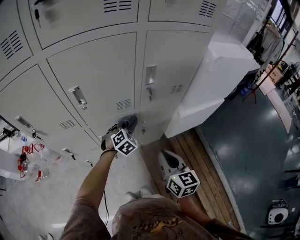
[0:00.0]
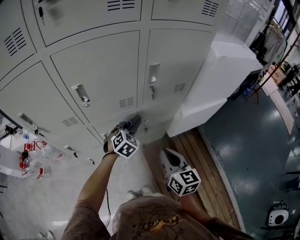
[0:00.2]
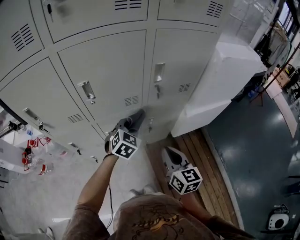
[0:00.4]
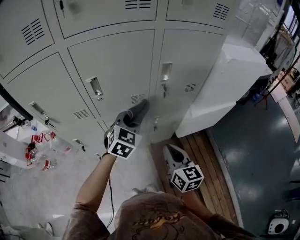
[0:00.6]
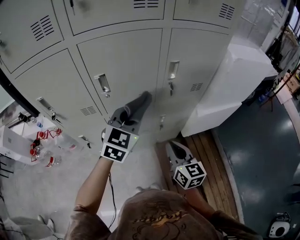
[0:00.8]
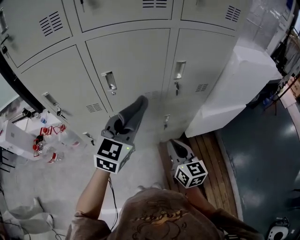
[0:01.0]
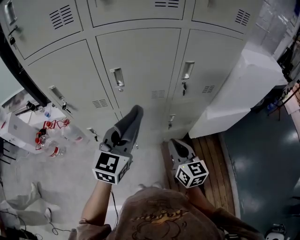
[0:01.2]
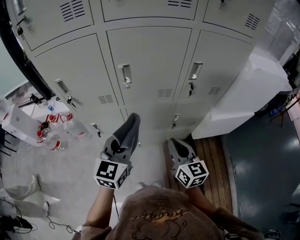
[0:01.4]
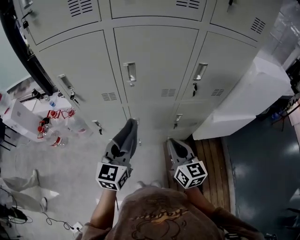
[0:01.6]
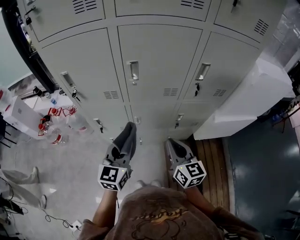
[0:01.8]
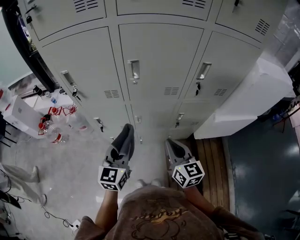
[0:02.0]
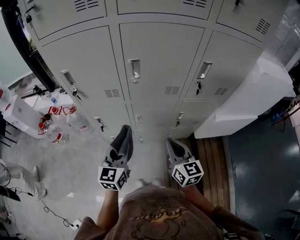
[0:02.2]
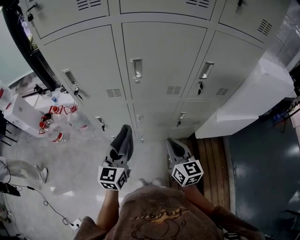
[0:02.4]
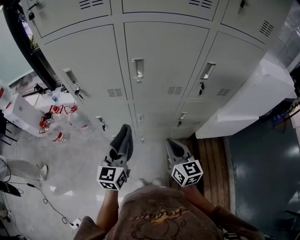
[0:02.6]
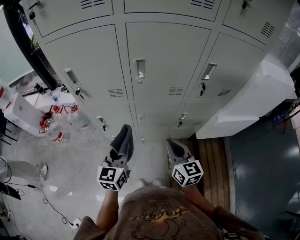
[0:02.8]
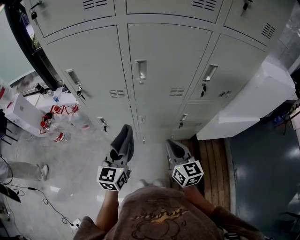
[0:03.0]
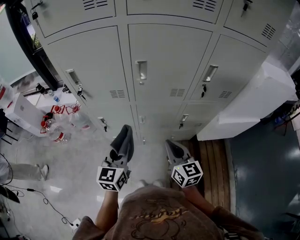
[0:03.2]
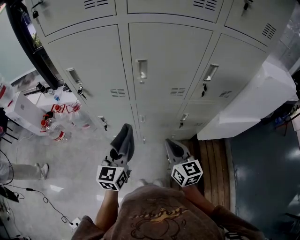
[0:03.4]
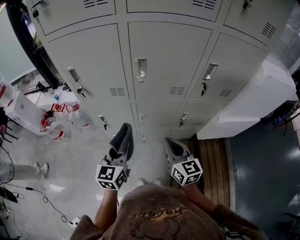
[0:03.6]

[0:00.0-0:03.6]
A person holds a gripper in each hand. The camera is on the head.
0:00.0 to 0:01.8: The left gripper shifts some 30 cm backward, to the left and upward, and points its fingers approximately 30 degrees further upward; the right gripper shifts about 10 cm to the left.
0:01.8 to 0:03.6: The grippers move only a little.

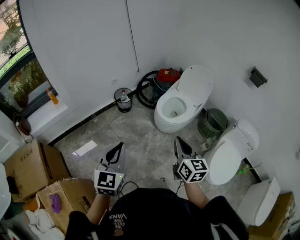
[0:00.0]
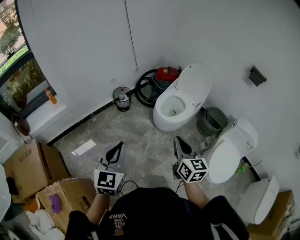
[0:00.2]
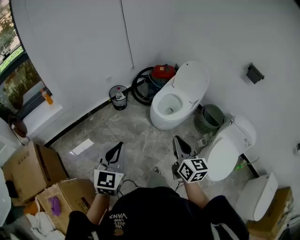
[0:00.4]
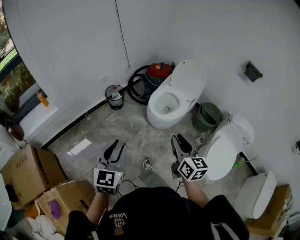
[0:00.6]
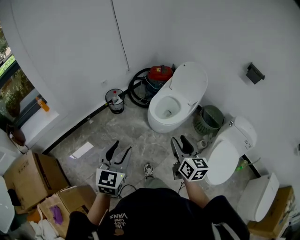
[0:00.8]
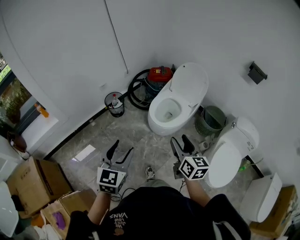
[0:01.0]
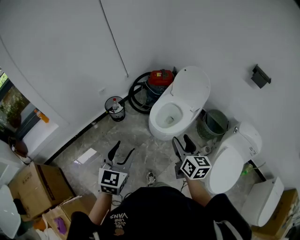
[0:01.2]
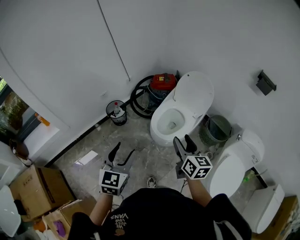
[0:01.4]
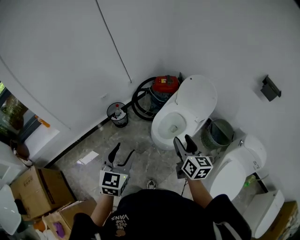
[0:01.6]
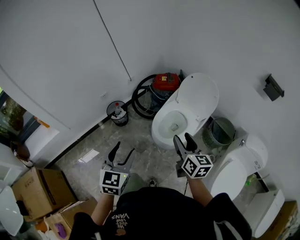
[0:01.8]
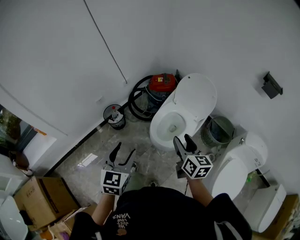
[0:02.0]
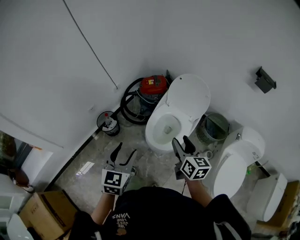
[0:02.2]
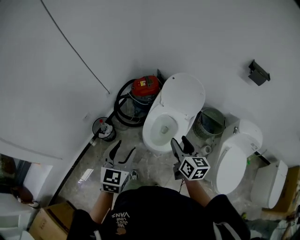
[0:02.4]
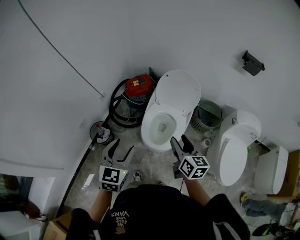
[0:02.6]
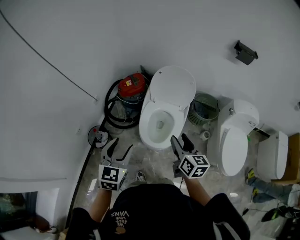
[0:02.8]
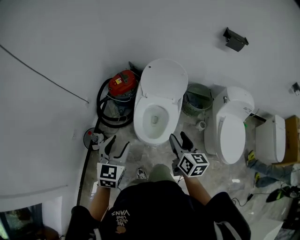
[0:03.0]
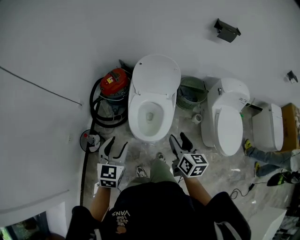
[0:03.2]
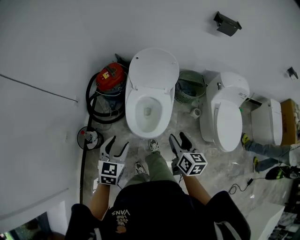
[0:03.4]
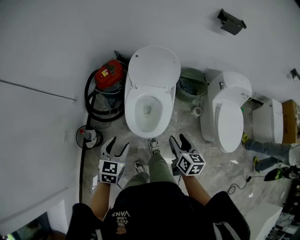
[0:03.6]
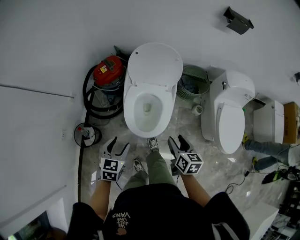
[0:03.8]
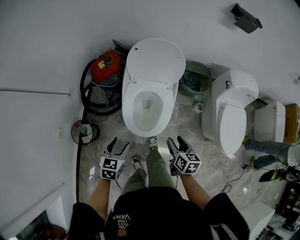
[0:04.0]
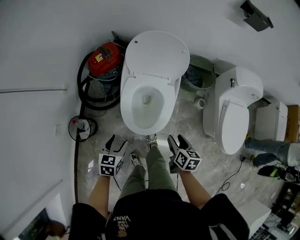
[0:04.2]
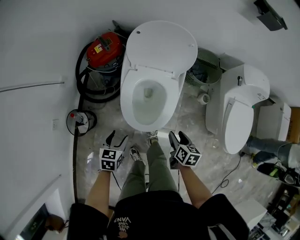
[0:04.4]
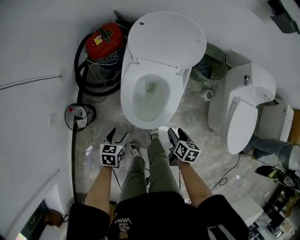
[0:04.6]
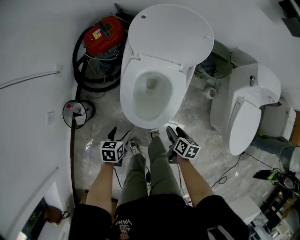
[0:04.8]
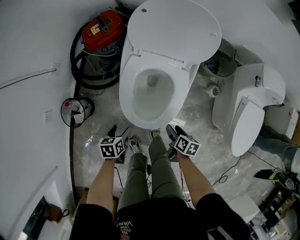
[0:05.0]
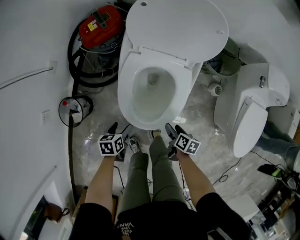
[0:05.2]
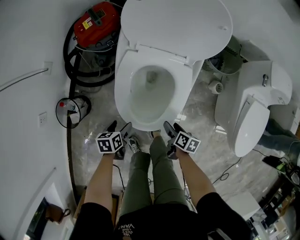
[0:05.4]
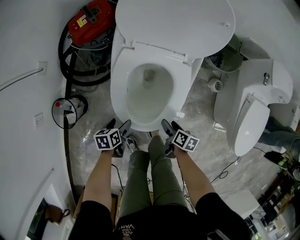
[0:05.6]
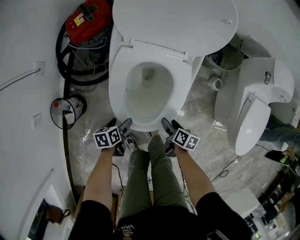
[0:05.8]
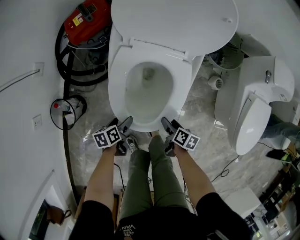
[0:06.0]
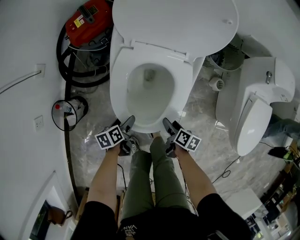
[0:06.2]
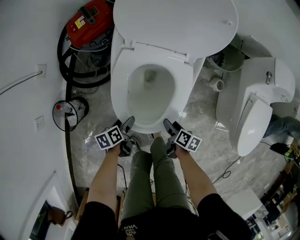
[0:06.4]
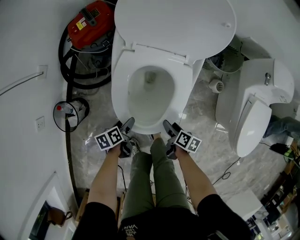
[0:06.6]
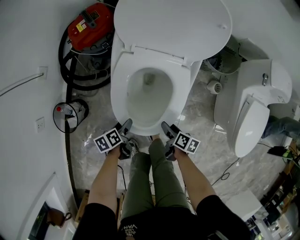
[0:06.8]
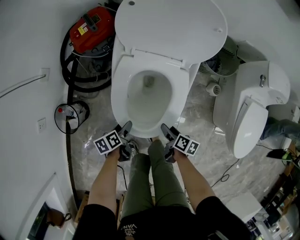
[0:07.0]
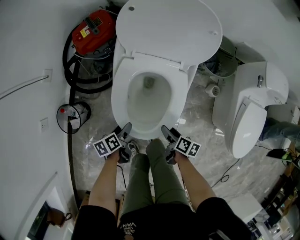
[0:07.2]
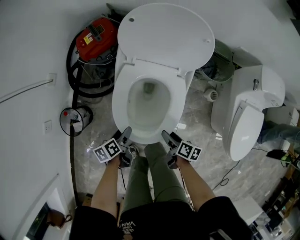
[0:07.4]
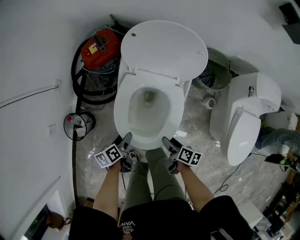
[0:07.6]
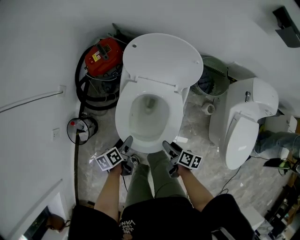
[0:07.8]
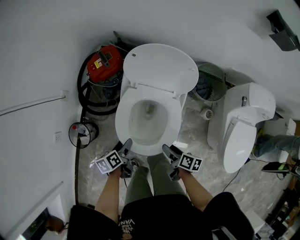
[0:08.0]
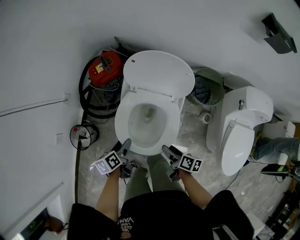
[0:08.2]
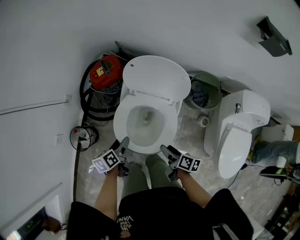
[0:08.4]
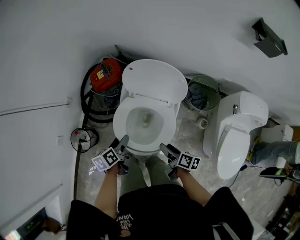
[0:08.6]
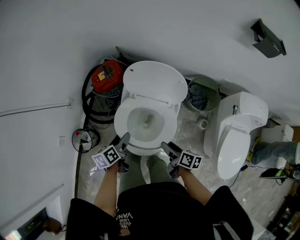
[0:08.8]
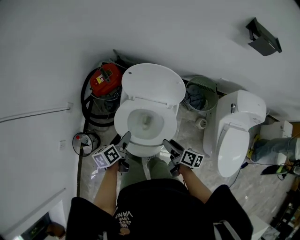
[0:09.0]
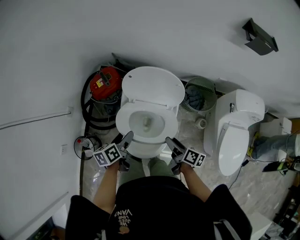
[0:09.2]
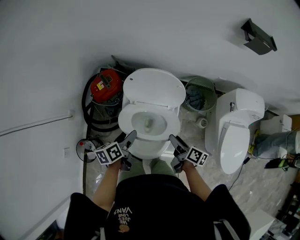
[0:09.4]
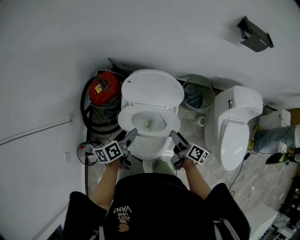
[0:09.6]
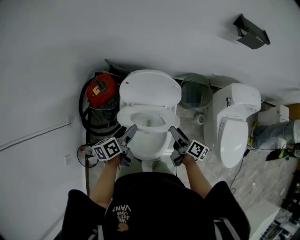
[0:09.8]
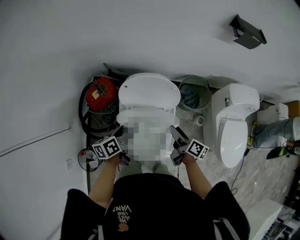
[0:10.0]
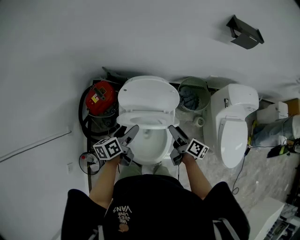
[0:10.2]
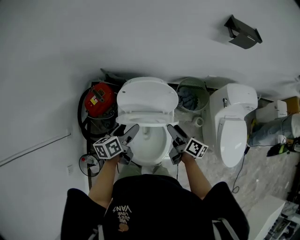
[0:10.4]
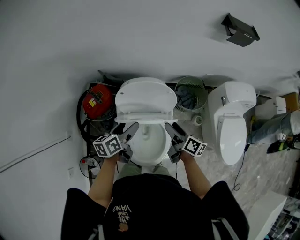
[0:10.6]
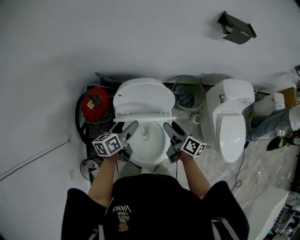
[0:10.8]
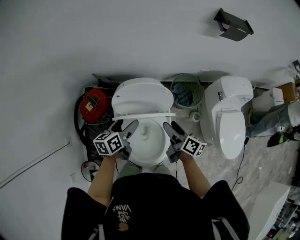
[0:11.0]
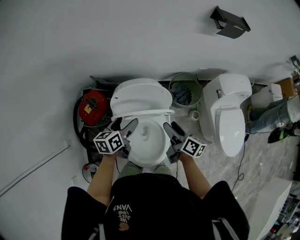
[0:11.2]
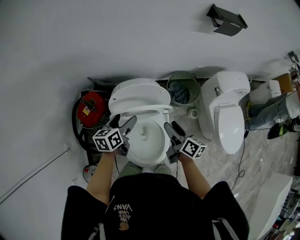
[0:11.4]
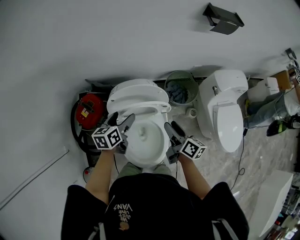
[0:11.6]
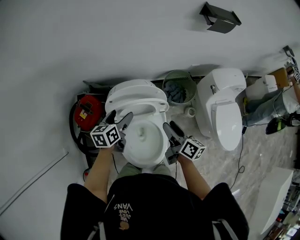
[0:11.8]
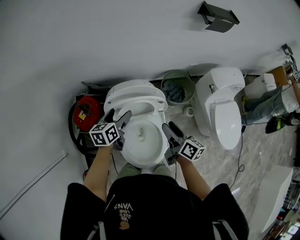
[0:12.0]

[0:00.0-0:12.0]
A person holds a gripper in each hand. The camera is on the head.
0:00.0 to 0:01.6: The two grippers go some 25 cm forward. The left gripper opens up, while the right gripper opens.
0:01.6 to 0:03.0: The right gripper ends up about 10 cm from where it was, and rotates roughly 40 degrees; the left gripper moves approximately 25 cm, and rotates approximately 30 degrees.
0:03.0 to 0:04.4: Both grippers travel together downward, approximately 30 cm. The left gripper turns by some 30 degrees; the right gripper rotates some 30 degrees.
0:04.4 to 0:06.0: Both grippers travel together downward, approximately 25 cm. The left gripper rolls counterclockwise, seen from behind, by about 40 degrees; the right gripper turns by some 20 degrees.
0:06.0 to 0:07.6: Both grippers move upward, some 15 cm.
0:07.6 to 0:09.0: Both grippers move upward and forward, some 20 cm.
0:09.0 to 0:10.4: Both grippers move forward and upward, some 15 cm. The right gripper swivels roughly 20 degrees; the left gripper changes its angle by approximately 20 degrees.
0:10.4 to 0:12.0: The left gripper goes approximately 10 cm forward, and swivels about 20 degrees.

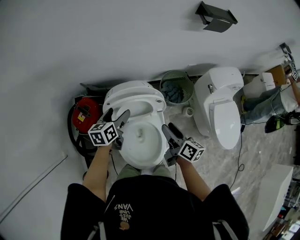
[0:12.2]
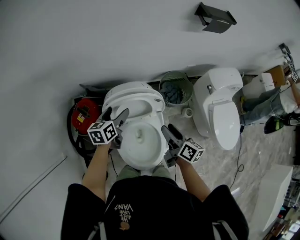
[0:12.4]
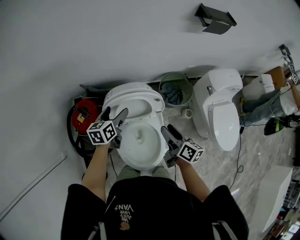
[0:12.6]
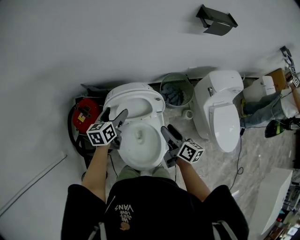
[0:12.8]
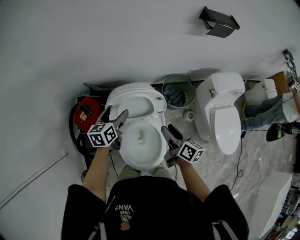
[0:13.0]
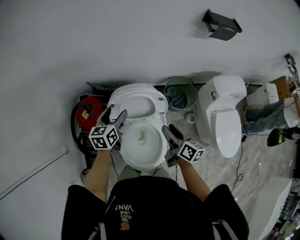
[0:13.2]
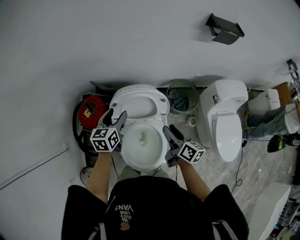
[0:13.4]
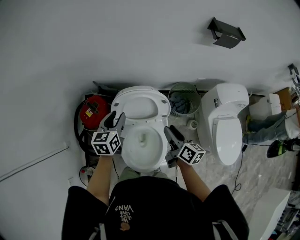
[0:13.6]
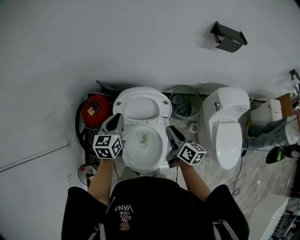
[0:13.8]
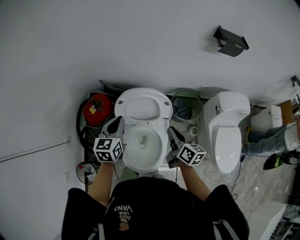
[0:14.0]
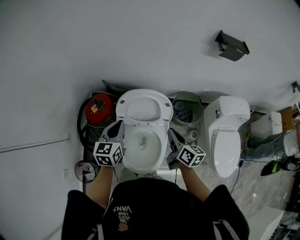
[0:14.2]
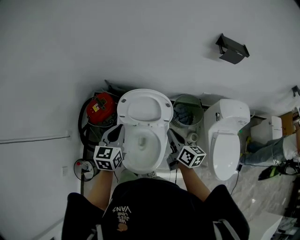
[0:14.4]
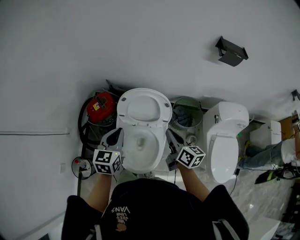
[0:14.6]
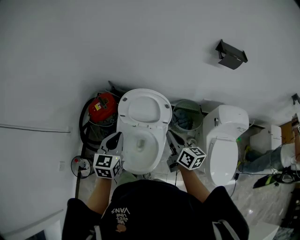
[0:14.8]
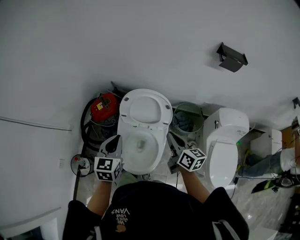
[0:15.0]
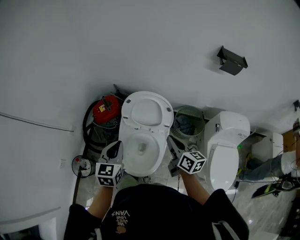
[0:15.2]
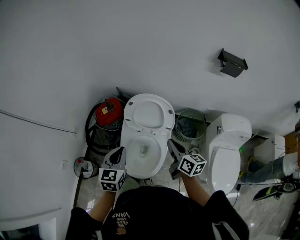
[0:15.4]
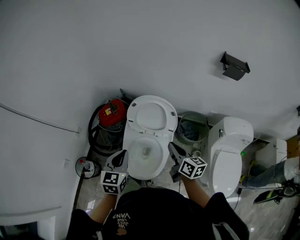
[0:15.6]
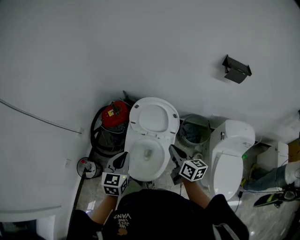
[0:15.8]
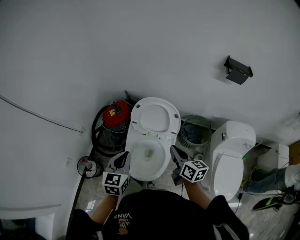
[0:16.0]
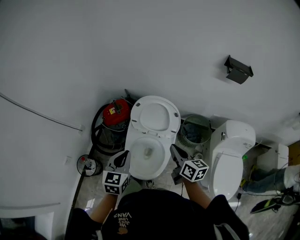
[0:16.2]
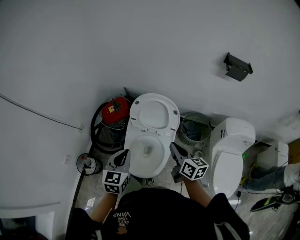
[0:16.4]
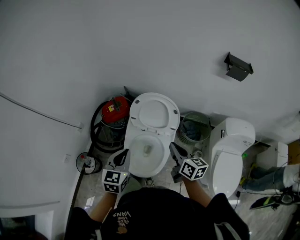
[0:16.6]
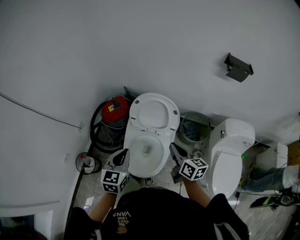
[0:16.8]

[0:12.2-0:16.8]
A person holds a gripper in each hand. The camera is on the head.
0:12.2 to 0:13.8: The left gripper is displaced upward and backward by some 10 cm, turns by some 20 degrees, and closes up. The right gripper closes up.
0:13.8 to 0:15.2: The right gripper is displaced backward and upward by roughly 10 cm, and swivels some 20 degrees, while the left gripper heads backward, covering some 20 cm.
0:15.2 to 0:16.8: The left gripper shifts about 5 cm backward.

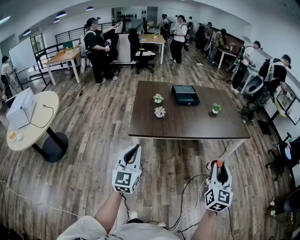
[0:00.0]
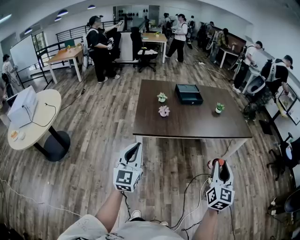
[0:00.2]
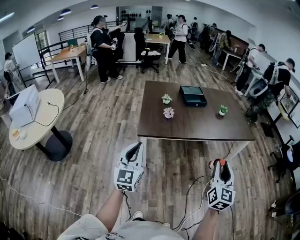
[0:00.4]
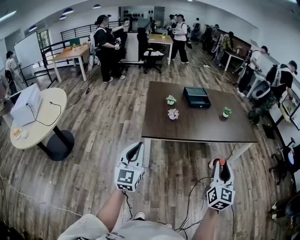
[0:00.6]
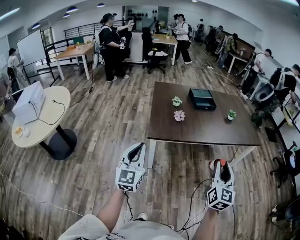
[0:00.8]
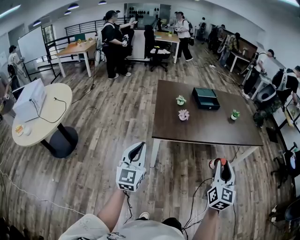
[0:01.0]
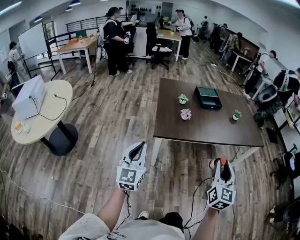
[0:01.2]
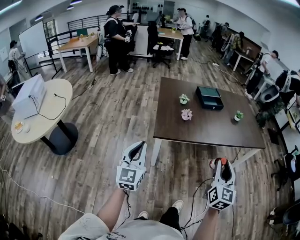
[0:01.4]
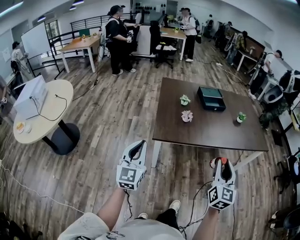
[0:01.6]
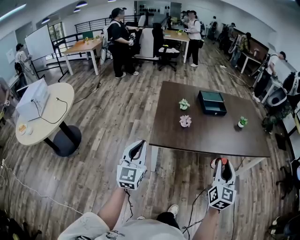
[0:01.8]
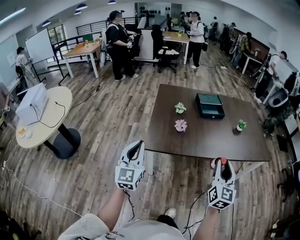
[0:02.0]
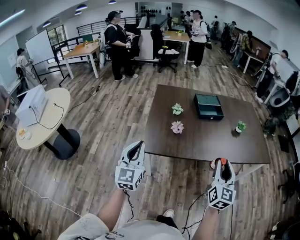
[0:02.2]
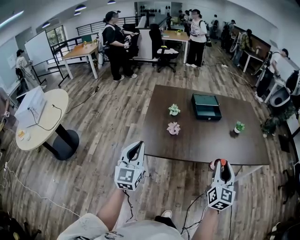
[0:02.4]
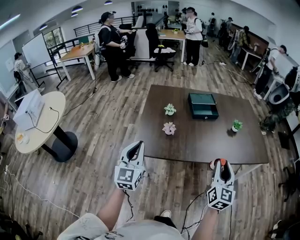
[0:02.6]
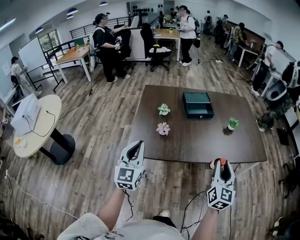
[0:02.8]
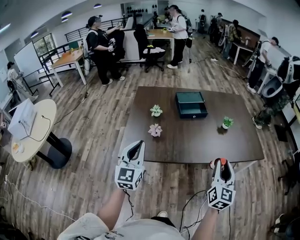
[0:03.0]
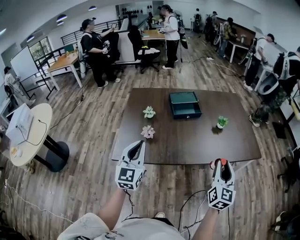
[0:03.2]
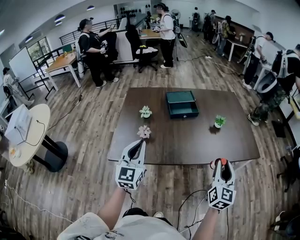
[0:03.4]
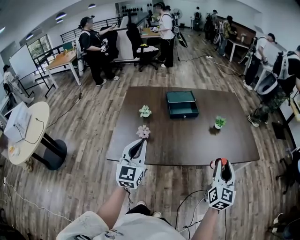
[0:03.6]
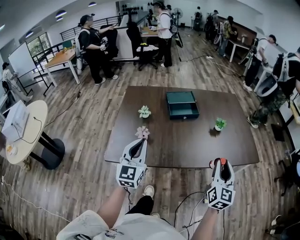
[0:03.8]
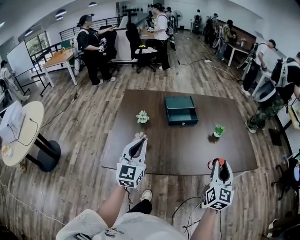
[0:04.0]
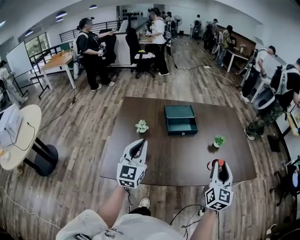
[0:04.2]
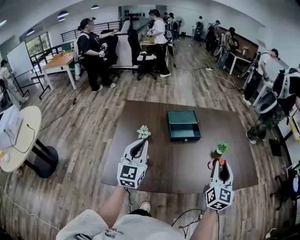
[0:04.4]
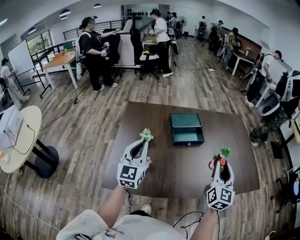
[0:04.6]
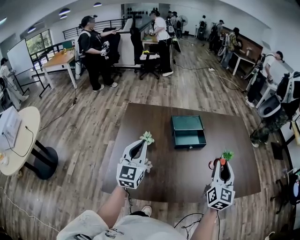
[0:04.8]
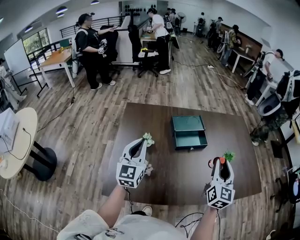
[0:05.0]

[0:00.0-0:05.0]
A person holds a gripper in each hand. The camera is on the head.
0:00.0 to 0:01.6: The right gripper moves to the left and forward, approximately 20 cm; the left gripper moves to the left, some 15 cm.
0:01.6 to 0:03.4: Both grippers move to the right and forward, roughly 35 cm.
0:03.4 to 0:05.0: Both grippers move forward and to the left, some 30 cm.
